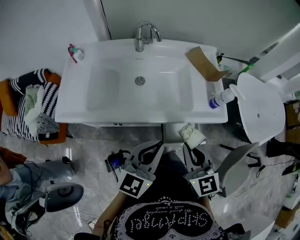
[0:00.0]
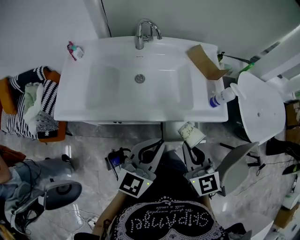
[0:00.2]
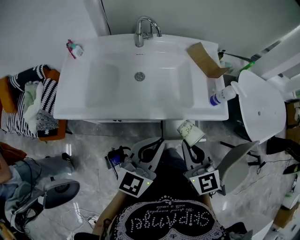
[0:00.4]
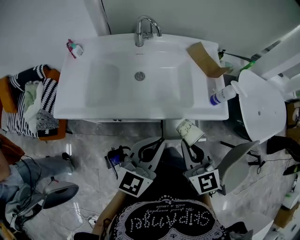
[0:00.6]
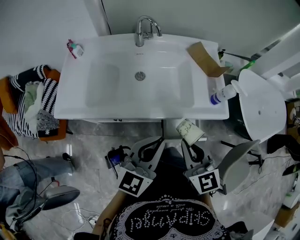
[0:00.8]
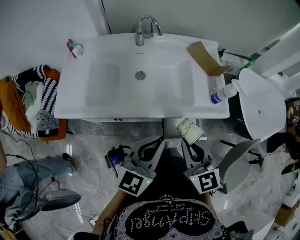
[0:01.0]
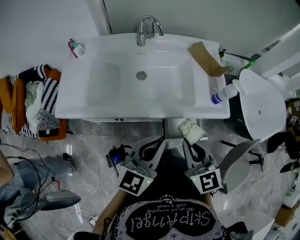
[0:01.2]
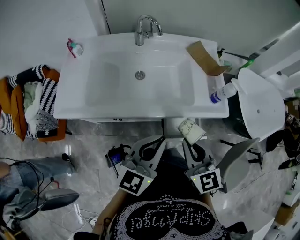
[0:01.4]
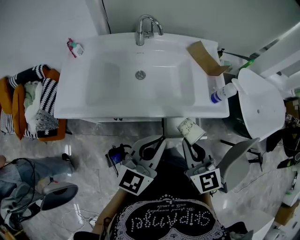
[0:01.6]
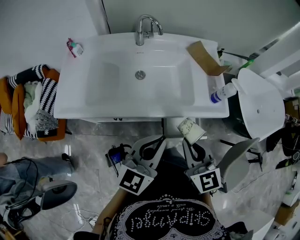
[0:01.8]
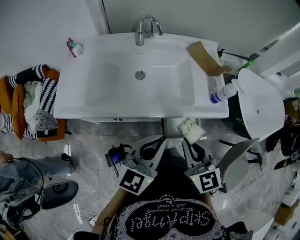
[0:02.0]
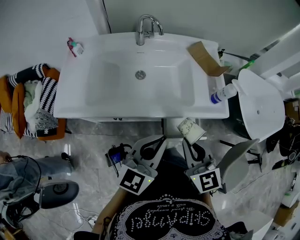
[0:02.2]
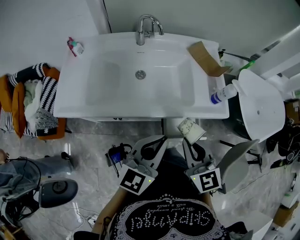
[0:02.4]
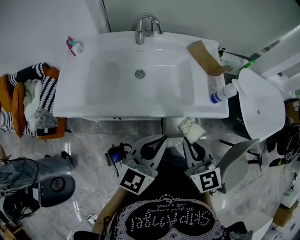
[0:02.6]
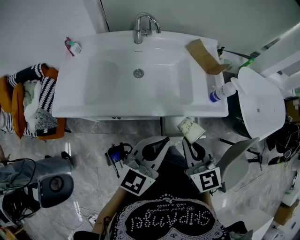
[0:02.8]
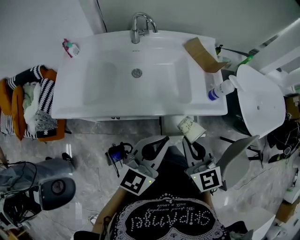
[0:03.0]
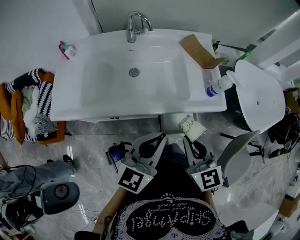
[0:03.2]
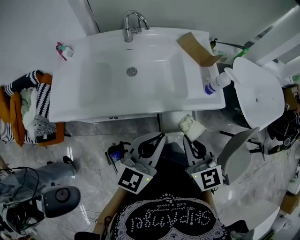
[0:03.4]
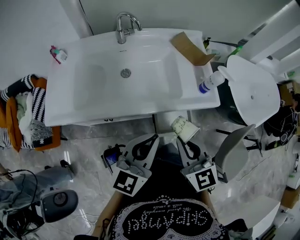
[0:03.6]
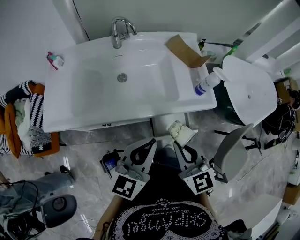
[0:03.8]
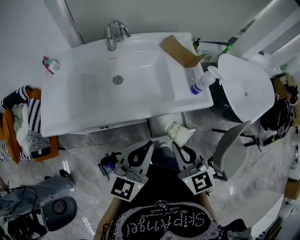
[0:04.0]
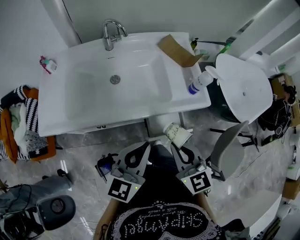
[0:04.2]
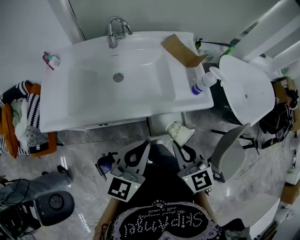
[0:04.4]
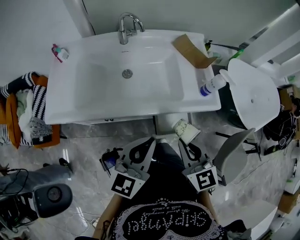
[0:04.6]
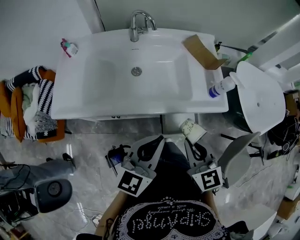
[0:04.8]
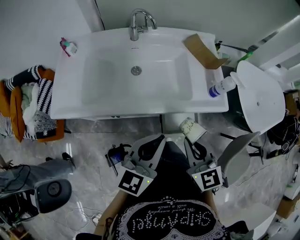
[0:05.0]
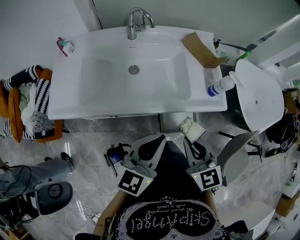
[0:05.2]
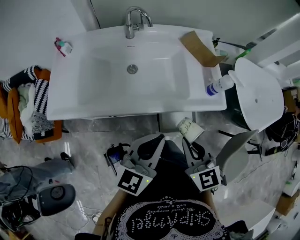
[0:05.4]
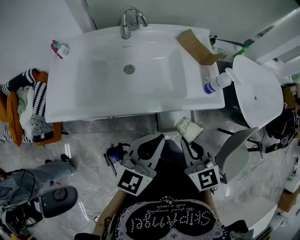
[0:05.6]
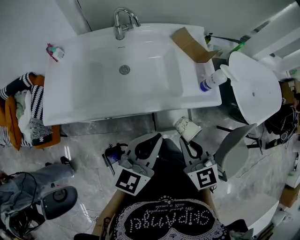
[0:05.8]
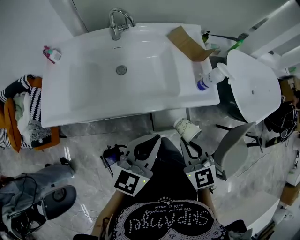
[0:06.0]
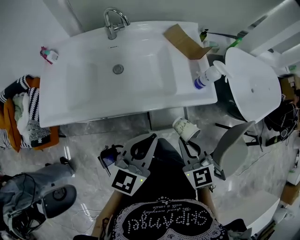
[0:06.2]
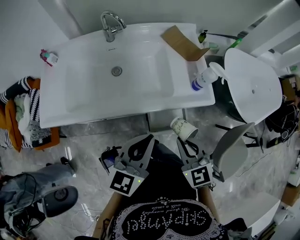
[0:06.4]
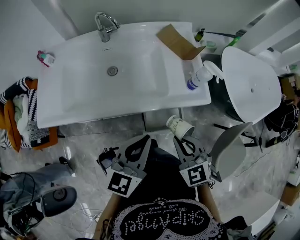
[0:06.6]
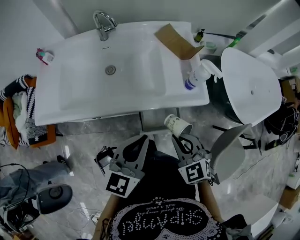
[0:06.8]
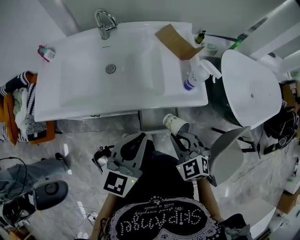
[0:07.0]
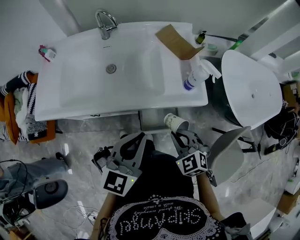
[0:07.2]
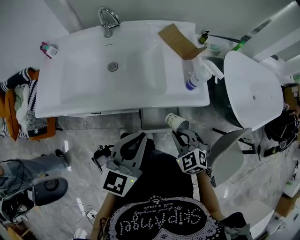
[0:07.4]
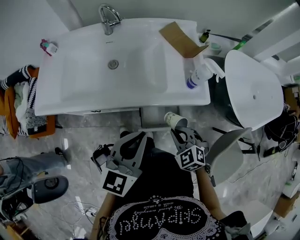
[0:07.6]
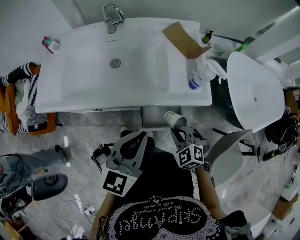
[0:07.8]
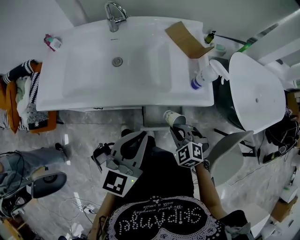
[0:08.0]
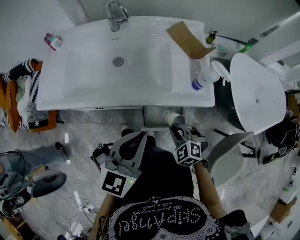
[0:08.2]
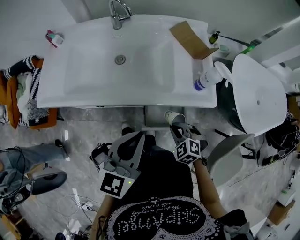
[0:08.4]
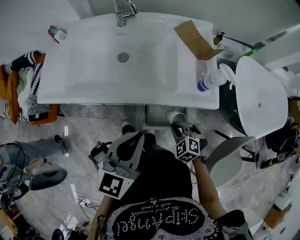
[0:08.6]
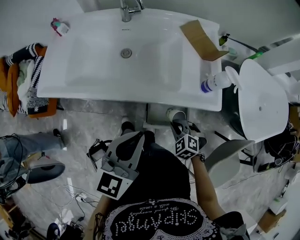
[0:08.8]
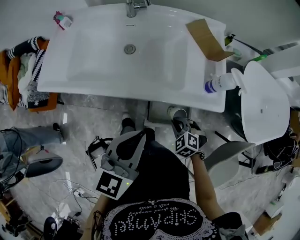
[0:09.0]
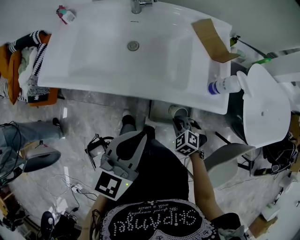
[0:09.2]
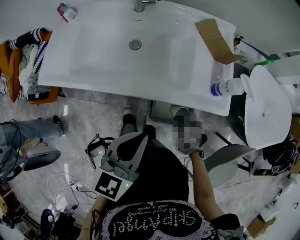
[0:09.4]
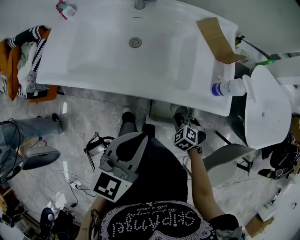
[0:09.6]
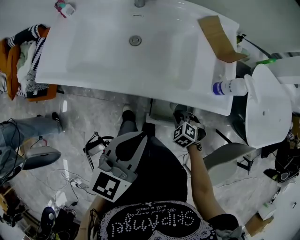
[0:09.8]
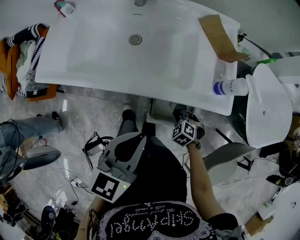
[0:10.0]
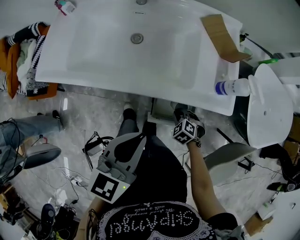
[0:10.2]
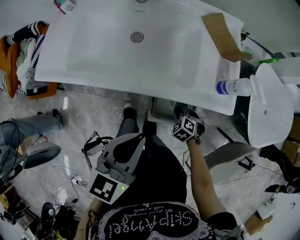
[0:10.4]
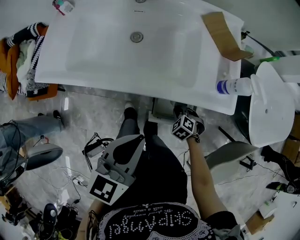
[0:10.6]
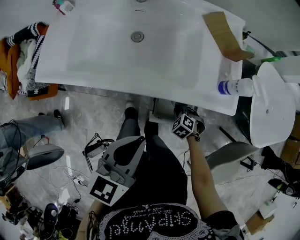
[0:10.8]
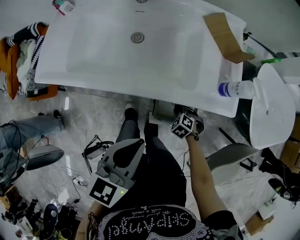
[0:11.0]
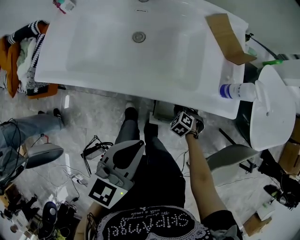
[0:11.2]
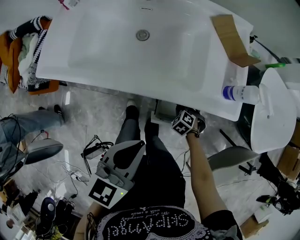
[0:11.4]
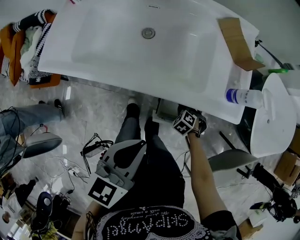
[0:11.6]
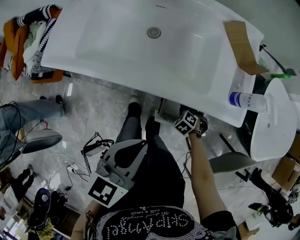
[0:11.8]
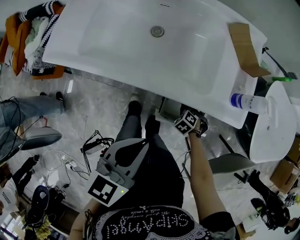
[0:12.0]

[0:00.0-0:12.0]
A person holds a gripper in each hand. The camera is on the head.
0:00.0 to 0:06.0: There are only small adjustments of the grippers.
0:06.0 to 0:07.6: The left gripper moves to the right, roughly 5 cm, while the right gripper moves downward and to the right, roughly 15 cm, and swivels some 30 degrees.
0:07.6 to 0:09.0: The right gripper moves downward, some 10 cm.
0:09.0 to 0:10.4: The right gripper shifts about 10 cm downward.
0:10.4 to 0:12.0: The right gripper goes approximately 5 cm downward.

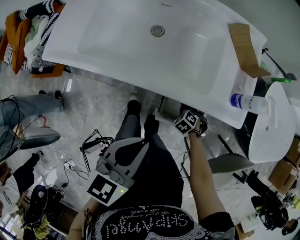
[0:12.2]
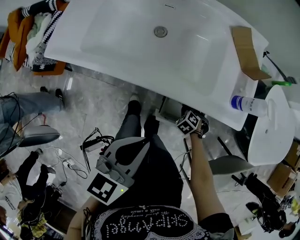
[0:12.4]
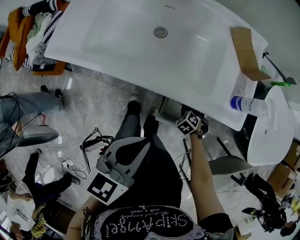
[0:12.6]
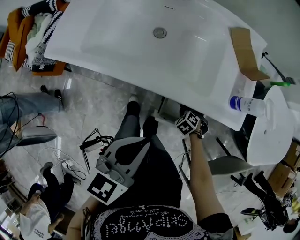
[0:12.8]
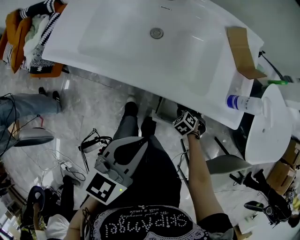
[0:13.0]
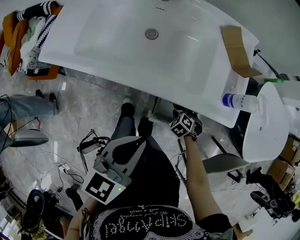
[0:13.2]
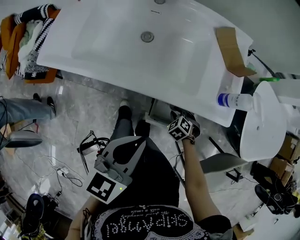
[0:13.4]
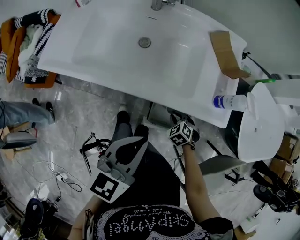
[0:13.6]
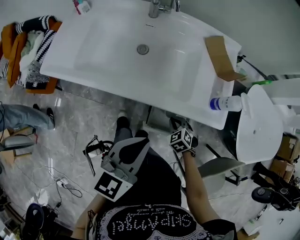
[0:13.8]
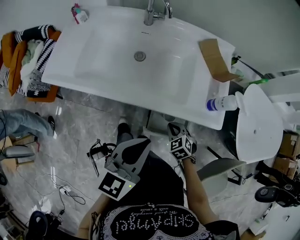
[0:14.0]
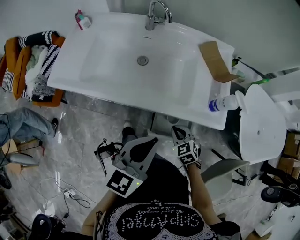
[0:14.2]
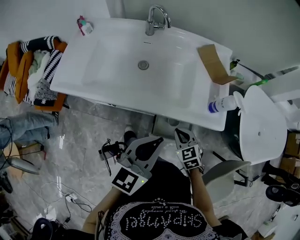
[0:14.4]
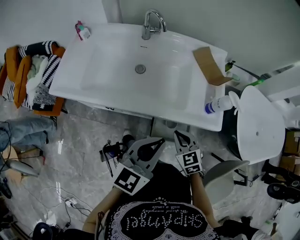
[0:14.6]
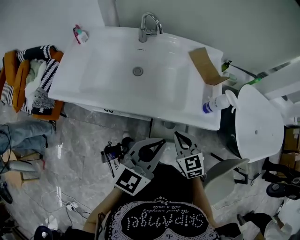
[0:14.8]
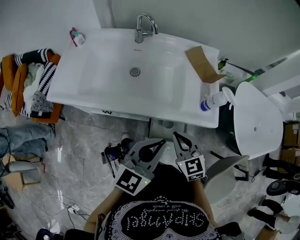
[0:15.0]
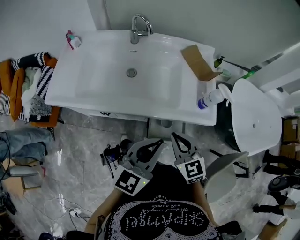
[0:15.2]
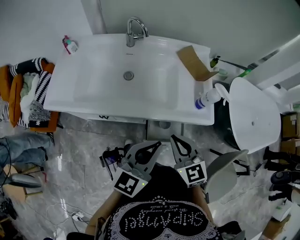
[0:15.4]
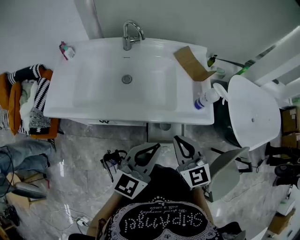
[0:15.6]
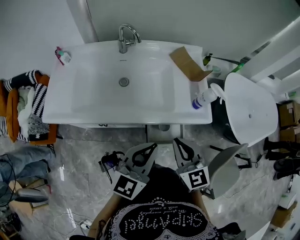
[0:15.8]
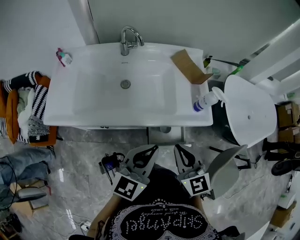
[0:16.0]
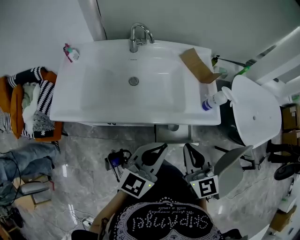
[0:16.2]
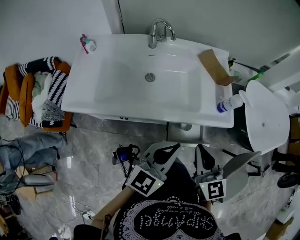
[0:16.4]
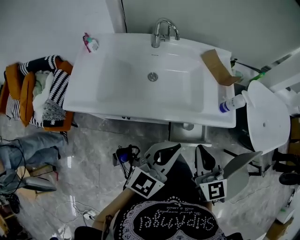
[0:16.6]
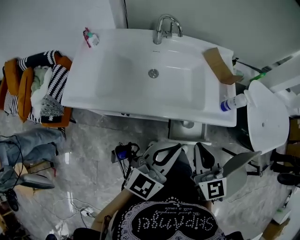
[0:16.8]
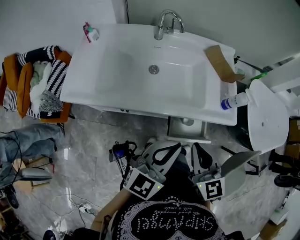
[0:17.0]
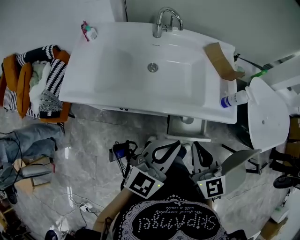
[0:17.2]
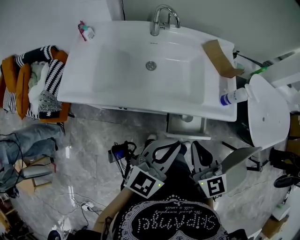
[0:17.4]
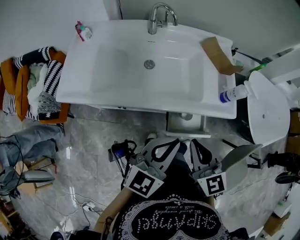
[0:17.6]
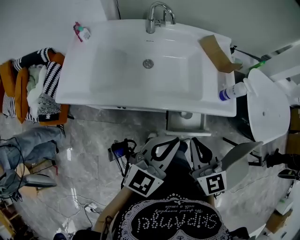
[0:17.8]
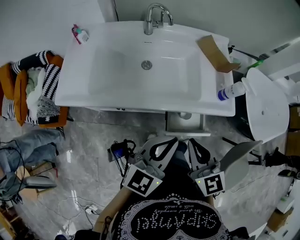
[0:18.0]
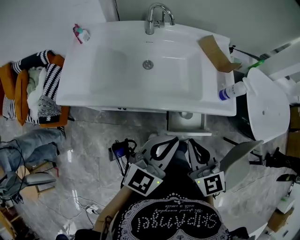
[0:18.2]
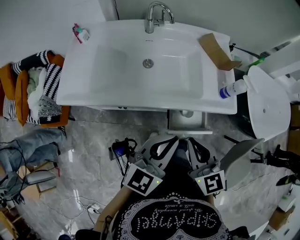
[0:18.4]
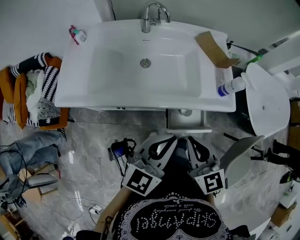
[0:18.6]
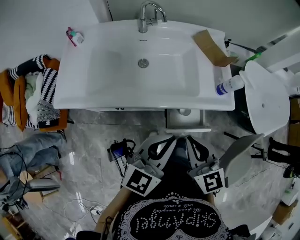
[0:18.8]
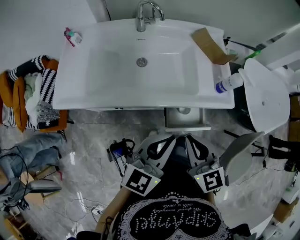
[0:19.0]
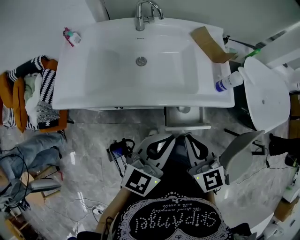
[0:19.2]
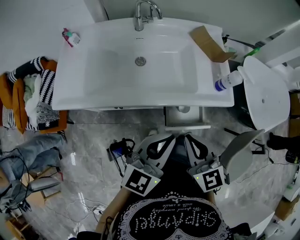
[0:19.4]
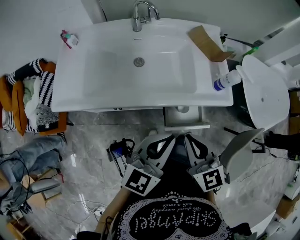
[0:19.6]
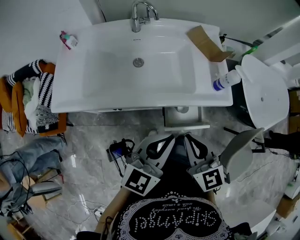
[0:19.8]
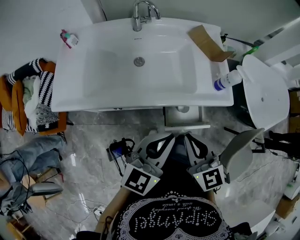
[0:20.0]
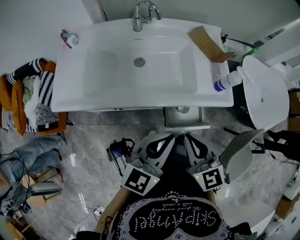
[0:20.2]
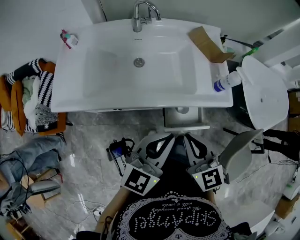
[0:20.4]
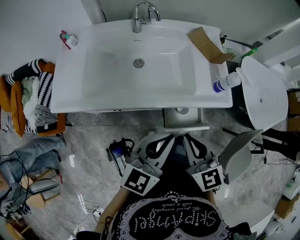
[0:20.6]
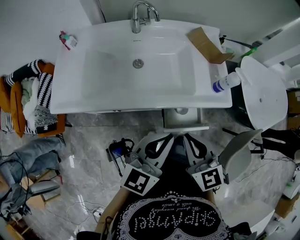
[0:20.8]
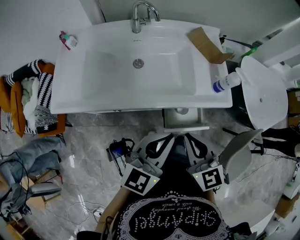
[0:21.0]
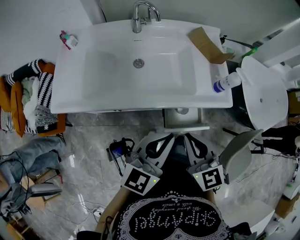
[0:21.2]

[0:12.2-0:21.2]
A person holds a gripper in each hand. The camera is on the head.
0:12.2 to 0:13.8: The right gripper shifts approximately 10 cm upward.
0:13.8 to 0:15.2: The left gripper ends up some 5 cm from where it was. Meanwhile the right gripper moves upward, roughly 25 cm, and tilts its fingers roughly 40 degrees upward.
0:15.2 to 0:16.6: The left gripper heads to the left, covering some 5 cm, while the right gripper goes approximately 10 cm upward.
0:16.6 to 0:18.2: The grippers move only a little.
0:18.2 to 0:21.2: Neither gripper changes place.

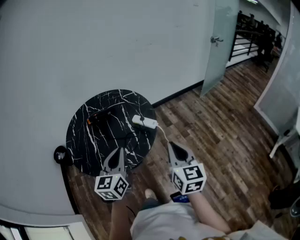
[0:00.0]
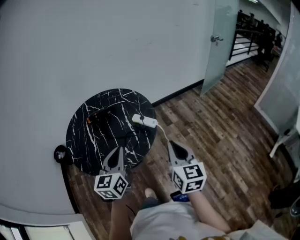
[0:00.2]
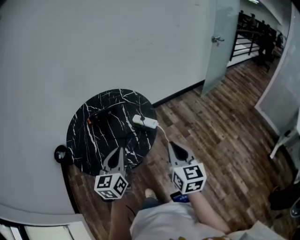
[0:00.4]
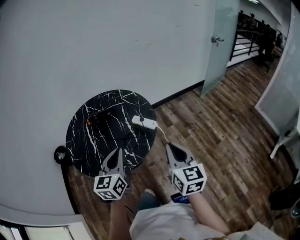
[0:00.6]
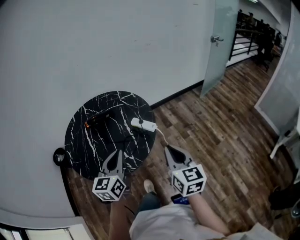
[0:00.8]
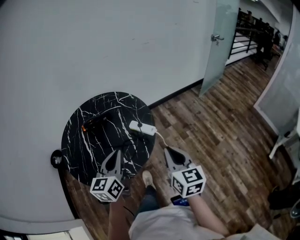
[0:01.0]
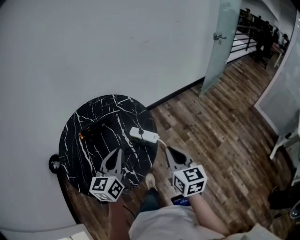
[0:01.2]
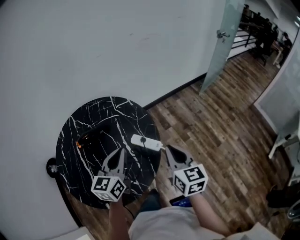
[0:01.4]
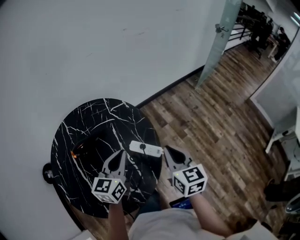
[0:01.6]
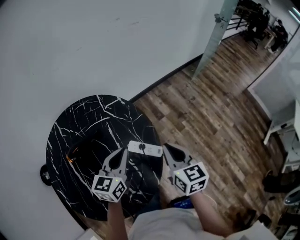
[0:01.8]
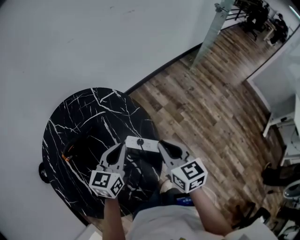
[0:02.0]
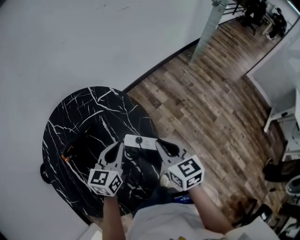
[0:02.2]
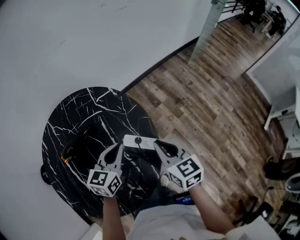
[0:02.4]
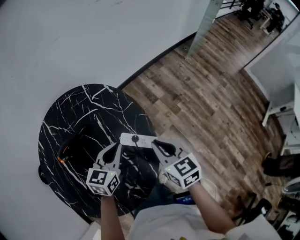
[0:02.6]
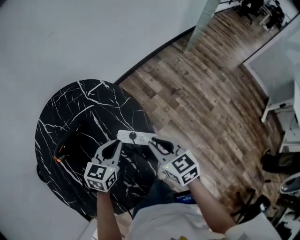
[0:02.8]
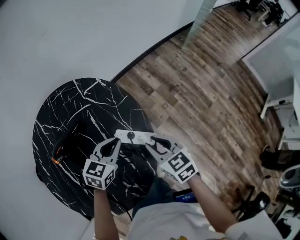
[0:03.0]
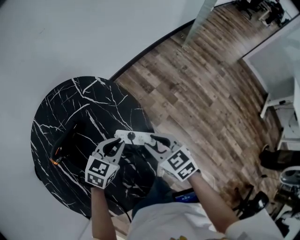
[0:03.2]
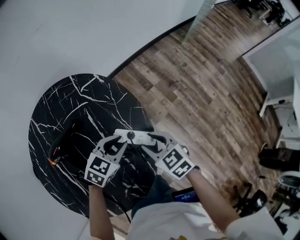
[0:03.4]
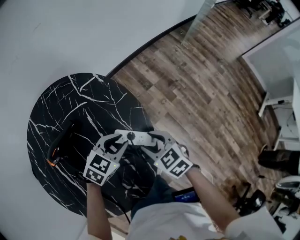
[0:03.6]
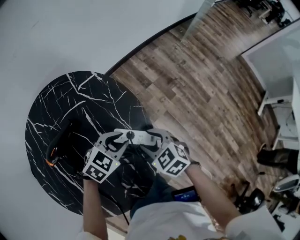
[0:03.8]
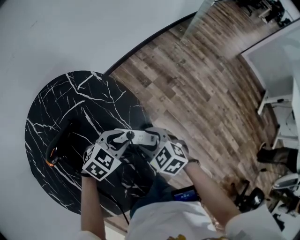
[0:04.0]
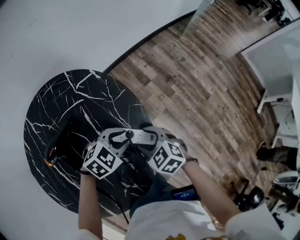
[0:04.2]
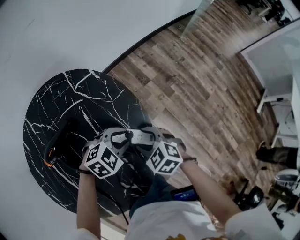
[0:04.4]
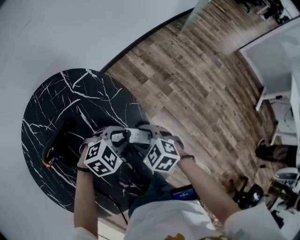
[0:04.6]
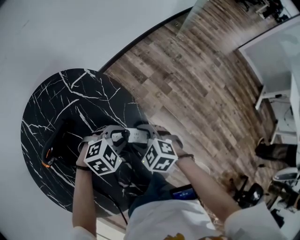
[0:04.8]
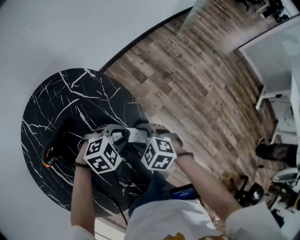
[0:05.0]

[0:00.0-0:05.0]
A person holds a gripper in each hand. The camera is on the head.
0:00.0 to 0:01.6: The grippers both shift forward by approximately 25 cm.
0:01.6 to 0:03.4: Both grippers move downward, approximately 15 cm. The left gripper changes its angle by roughly 50 degrees. The right gripper changes its angle by approximately 30 degrees, and opens.
0:03.4 to 0:05.0: The left gripper shifts by about 5 cm, and turns by approximately 40 degrees. Meanwhile the right gripper shifts approximately 5 cm downward, and swivels approximately 30 degrees.
